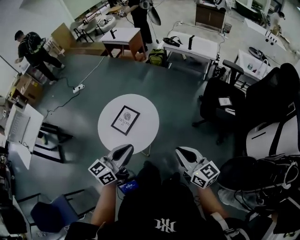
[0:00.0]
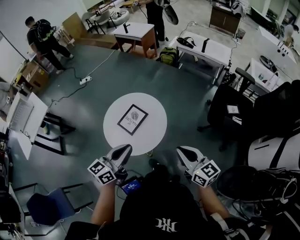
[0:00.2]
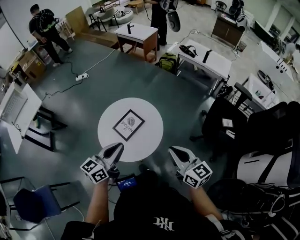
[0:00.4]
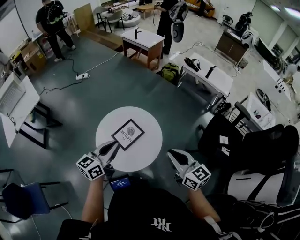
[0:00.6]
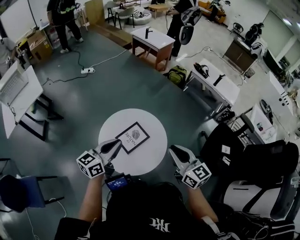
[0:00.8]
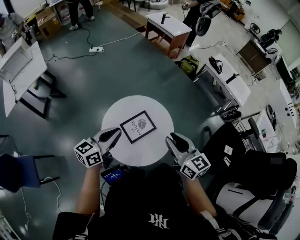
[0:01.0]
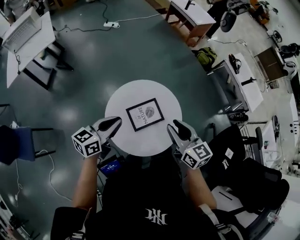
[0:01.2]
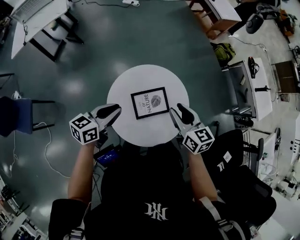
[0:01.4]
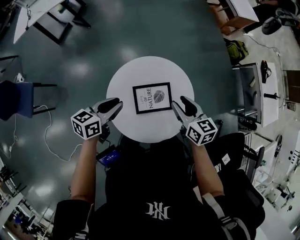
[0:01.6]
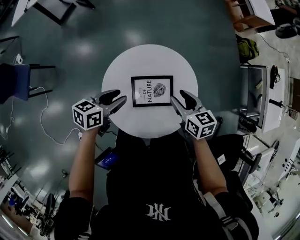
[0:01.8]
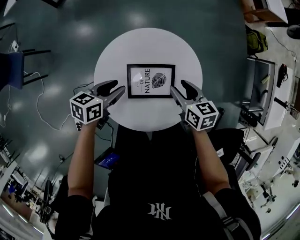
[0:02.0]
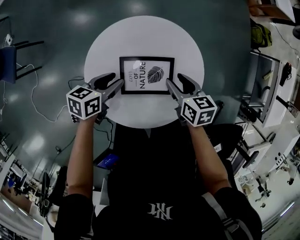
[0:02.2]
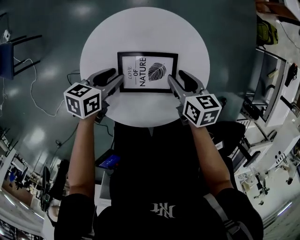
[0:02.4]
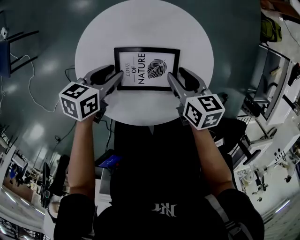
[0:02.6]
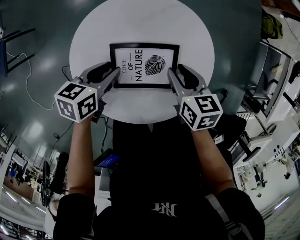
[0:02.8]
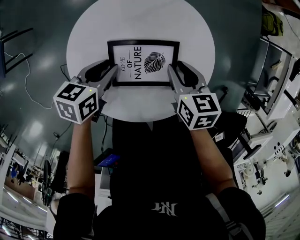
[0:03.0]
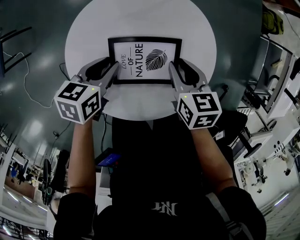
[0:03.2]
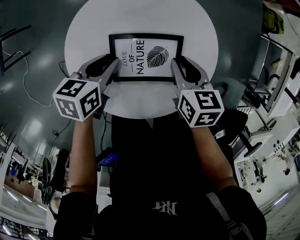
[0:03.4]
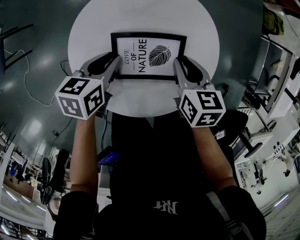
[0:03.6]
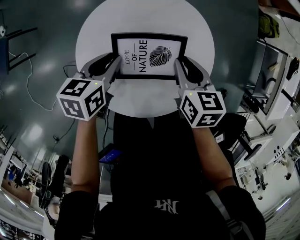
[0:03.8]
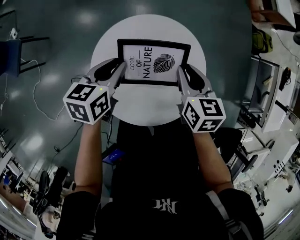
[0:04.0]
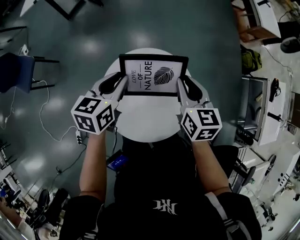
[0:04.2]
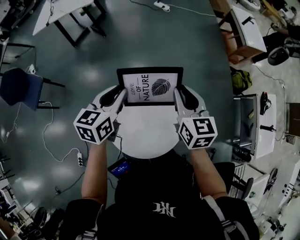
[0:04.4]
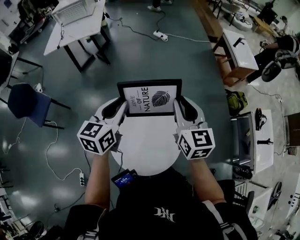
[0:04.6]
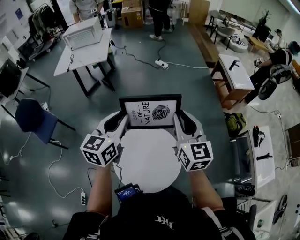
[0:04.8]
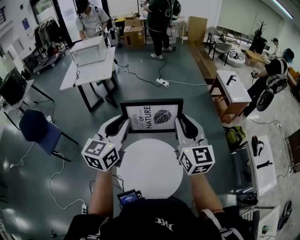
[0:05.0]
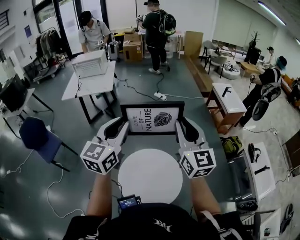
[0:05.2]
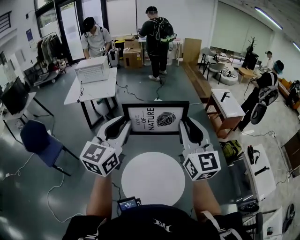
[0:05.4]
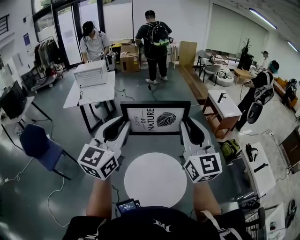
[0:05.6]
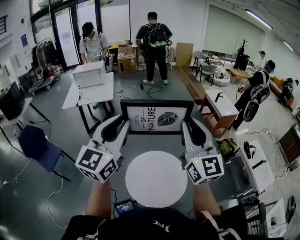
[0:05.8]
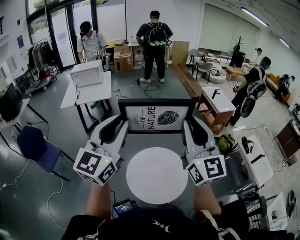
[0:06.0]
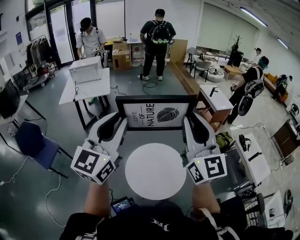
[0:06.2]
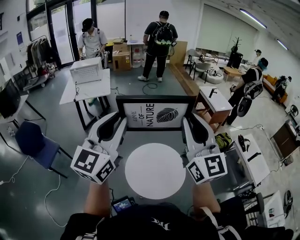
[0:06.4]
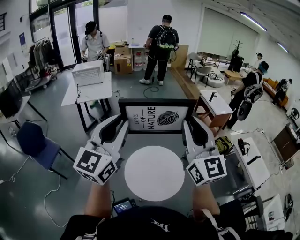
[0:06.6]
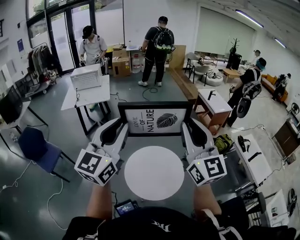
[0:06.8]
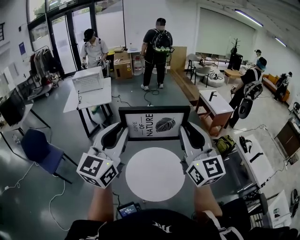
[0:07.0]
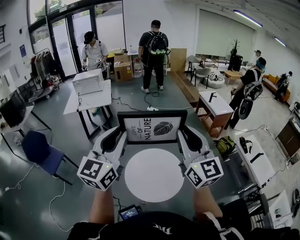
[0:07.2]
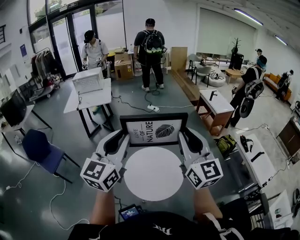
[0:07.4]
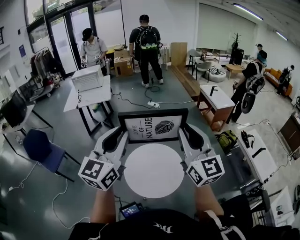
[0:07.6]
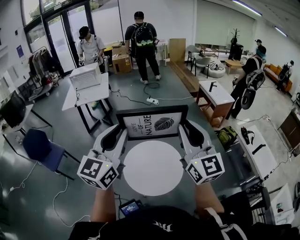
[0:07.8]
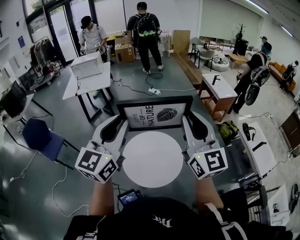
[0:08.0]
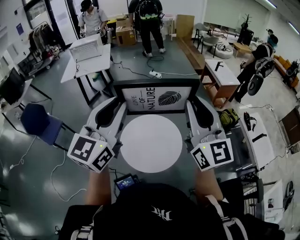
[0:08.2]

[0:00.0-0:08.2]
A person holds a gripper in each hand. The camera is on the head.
0:00.0 to 0:01.6: The left gripper moves roughly 40 cm, and turns by roughly 50 degrees. Meanwhile the right gripper ends up approximately 50 cm from where it was, swivels some 50 degrees, and opens up.
0:01.6 to 0:03.2: The grippers both shift downward by some 20 cm. The right gripper rotates approximately 20 degrees. Meanwhile the left gripper turns by about 30 degrees.
0:03.2 to 0:05.0: The two grippers go about 60 cm upward. The right gripper points its fingers roughly 50 degrees further upward; the left gripper tips its fingers upward by some 50 degrees.
0:05.0 to 0:06.6: The grippers both shift backward and upward by roughly 30 cm. The right gripper rotates about 20 degrees. The left gripper changes its angle by approximately 20 degrees.
0:06.6 to 0:08.2: Both grippers travel together to the right, approximately 5 cm.

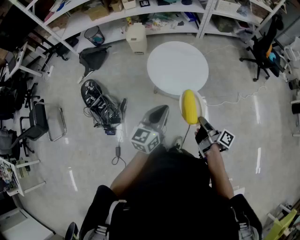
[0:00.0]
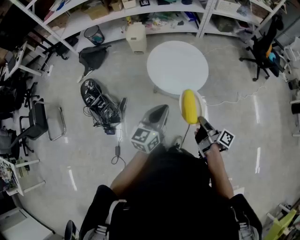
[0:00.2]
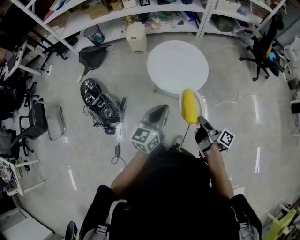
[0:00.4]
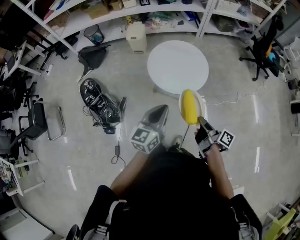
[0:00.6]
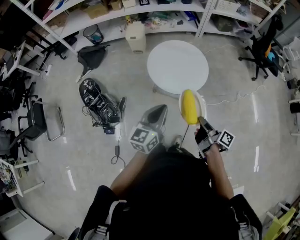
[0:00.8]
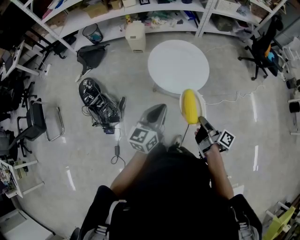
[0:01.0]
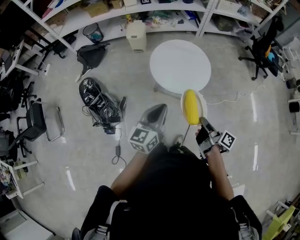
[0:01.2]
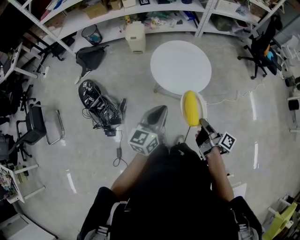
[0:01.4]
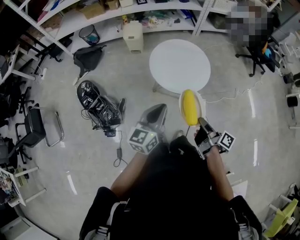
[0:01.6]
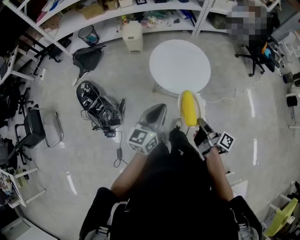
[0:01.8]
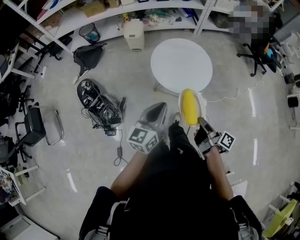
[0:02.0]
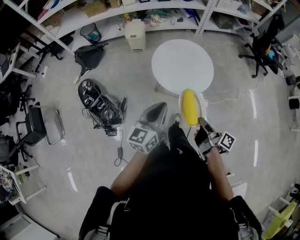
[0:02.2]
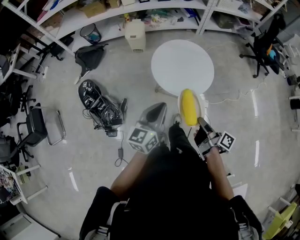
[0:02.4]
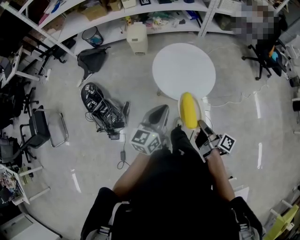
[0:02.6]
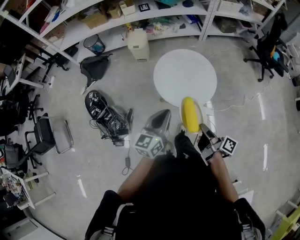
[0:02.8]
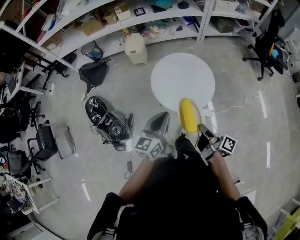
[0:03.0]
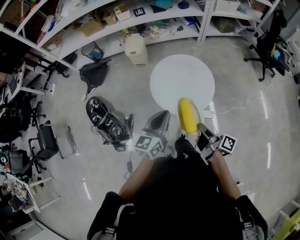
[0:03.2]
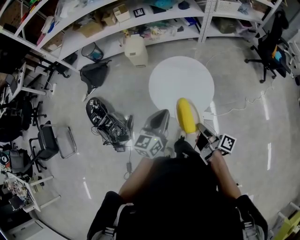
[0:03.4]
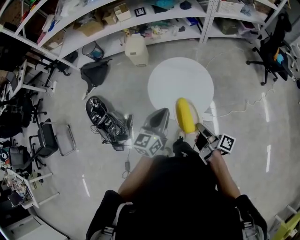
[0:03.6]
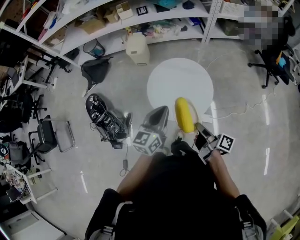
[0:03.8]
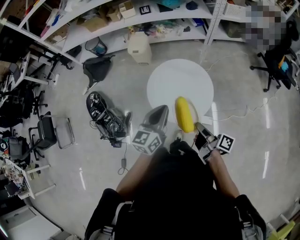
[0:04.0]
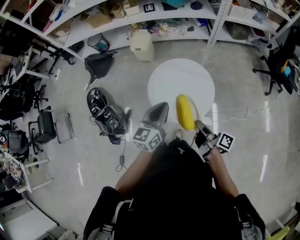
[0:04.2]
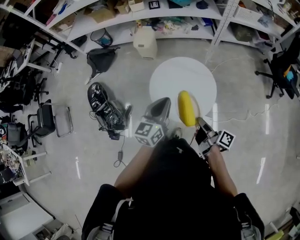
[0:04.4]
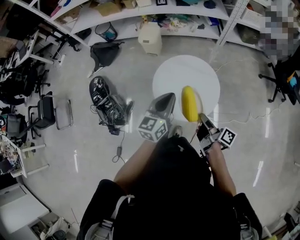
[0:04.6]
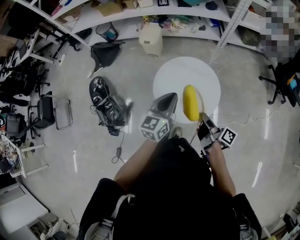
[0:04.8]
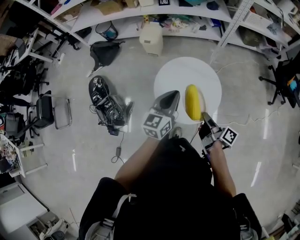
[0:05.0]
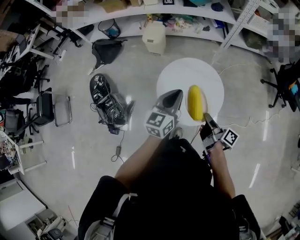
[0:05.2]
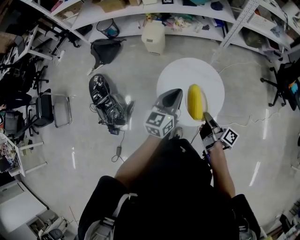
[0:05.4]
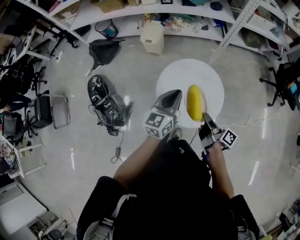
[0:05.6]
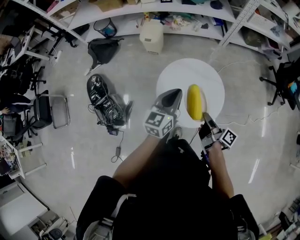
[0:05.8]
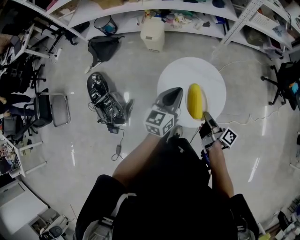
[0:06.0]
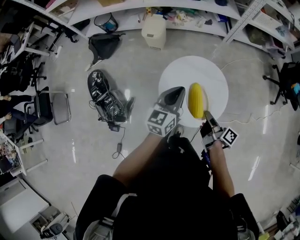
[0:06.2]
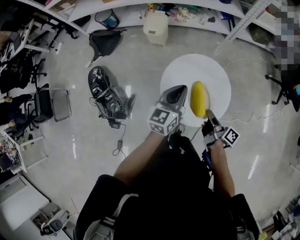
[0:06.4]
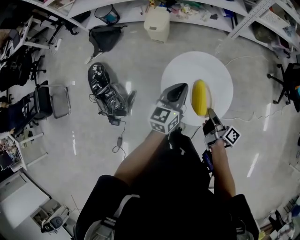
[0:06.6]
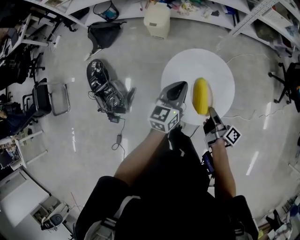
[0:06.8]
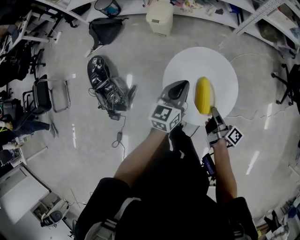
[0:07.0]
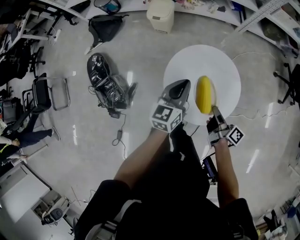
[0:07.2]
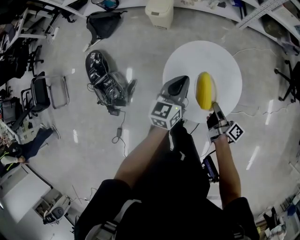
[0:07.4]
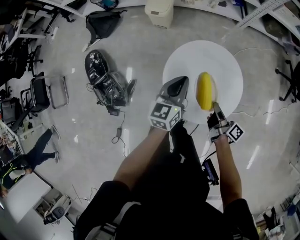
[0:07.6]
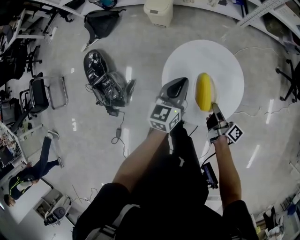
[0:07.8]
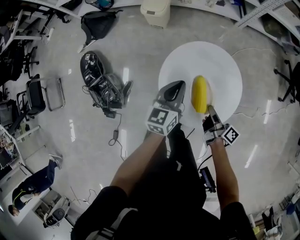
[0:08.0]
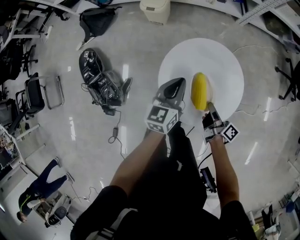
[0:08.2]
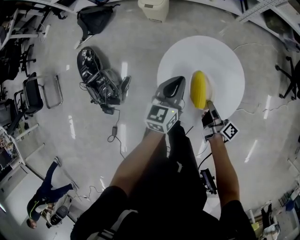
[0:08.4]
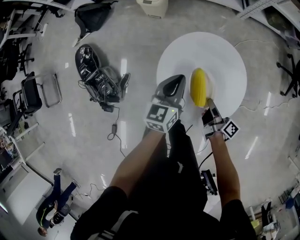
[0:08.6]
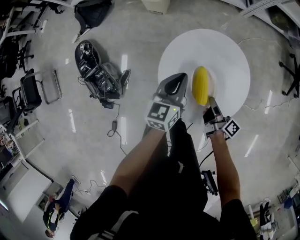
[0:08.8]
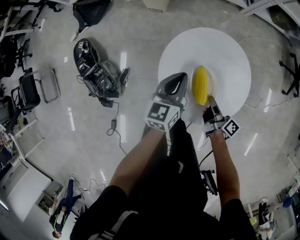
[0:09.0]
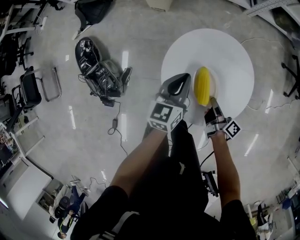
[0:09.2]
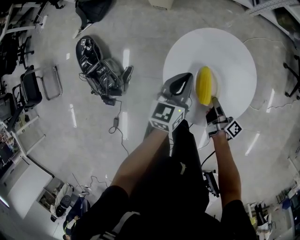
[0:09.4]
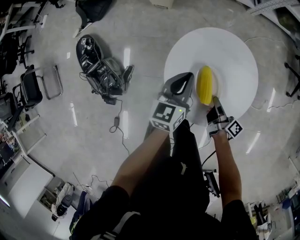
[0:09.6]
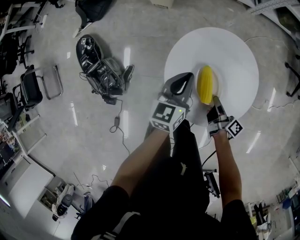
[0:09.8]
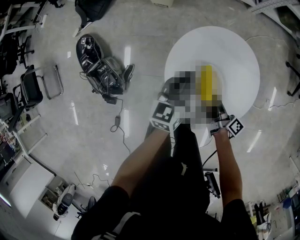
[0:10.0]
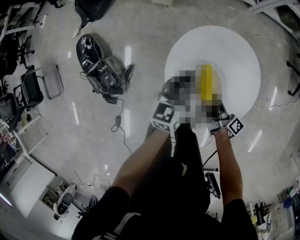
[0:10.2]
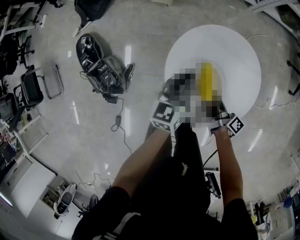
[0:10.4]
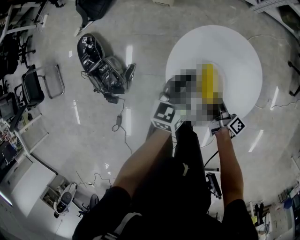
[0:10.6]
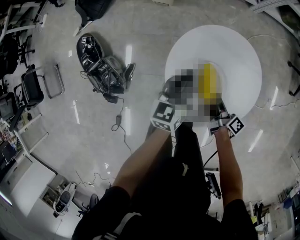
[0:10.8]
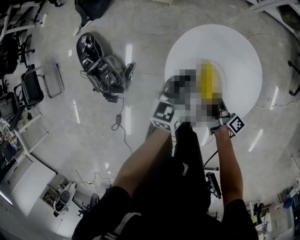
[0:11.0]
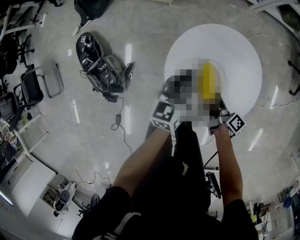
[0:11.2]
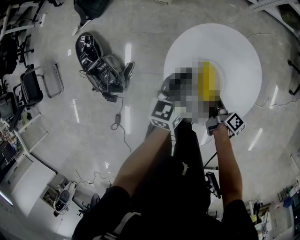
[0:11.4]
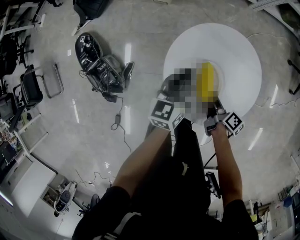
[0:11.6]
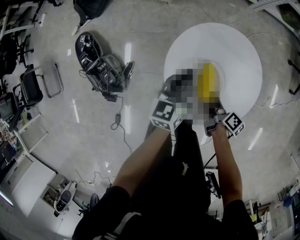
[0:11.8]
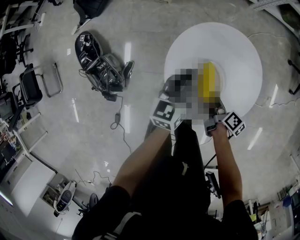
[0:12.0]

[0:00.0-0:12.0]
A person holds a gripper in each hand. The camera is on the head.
0:00.0 to 0:01.6: The left gripper changes place by some 5 cm.
0:01.6 to 0:03.0: The left gripper moves about 10 cm.
0:03.0 to 0:04.4: The left gripper moves some 15 cm.
0:04.4 to 0:06.0: The left gripper ends up roughly 10 cm from where it was.
0:06.0 to 0:07.6: The left gripper shifts about 10 cm downward.
0:07.6 to 0:09.0: The left gripper shifts about 10 cm downward.

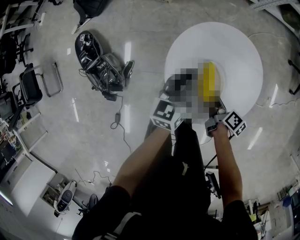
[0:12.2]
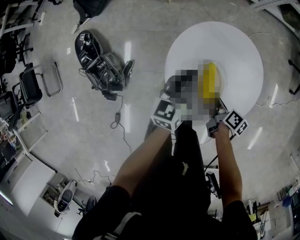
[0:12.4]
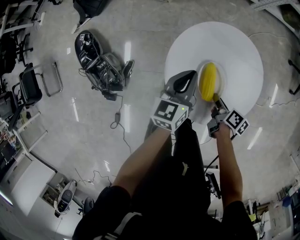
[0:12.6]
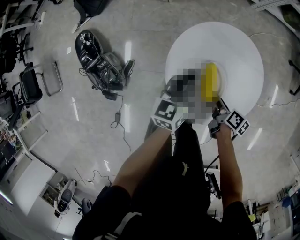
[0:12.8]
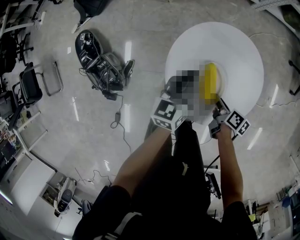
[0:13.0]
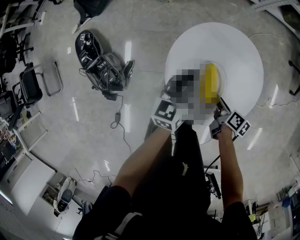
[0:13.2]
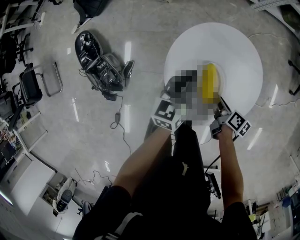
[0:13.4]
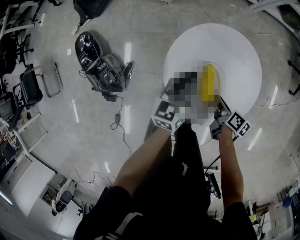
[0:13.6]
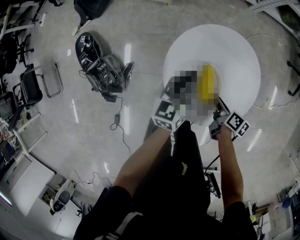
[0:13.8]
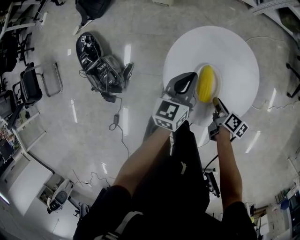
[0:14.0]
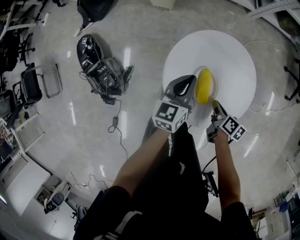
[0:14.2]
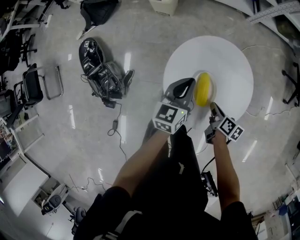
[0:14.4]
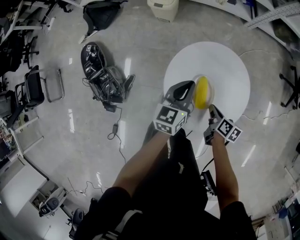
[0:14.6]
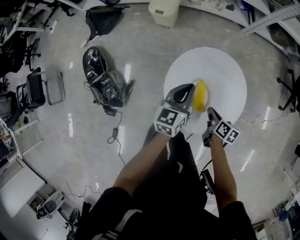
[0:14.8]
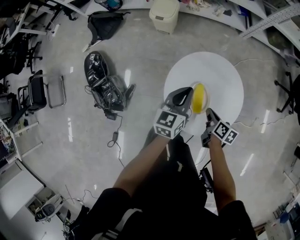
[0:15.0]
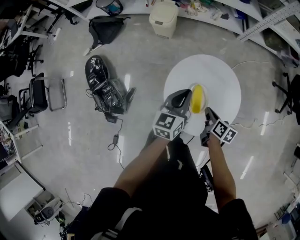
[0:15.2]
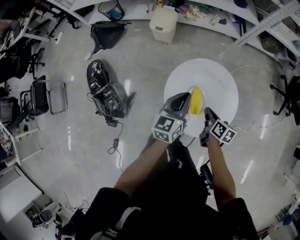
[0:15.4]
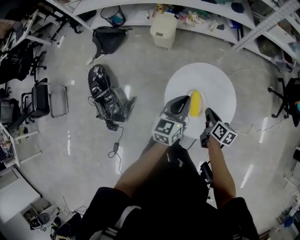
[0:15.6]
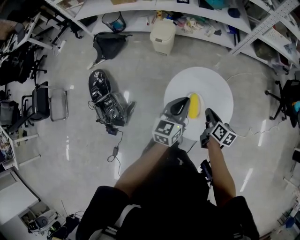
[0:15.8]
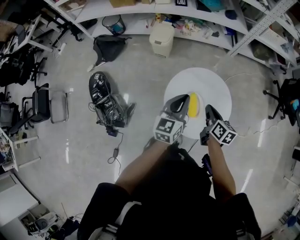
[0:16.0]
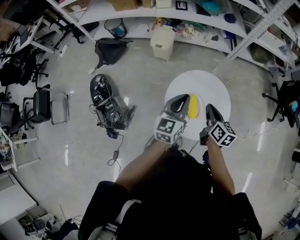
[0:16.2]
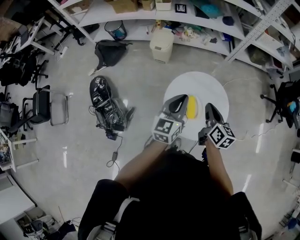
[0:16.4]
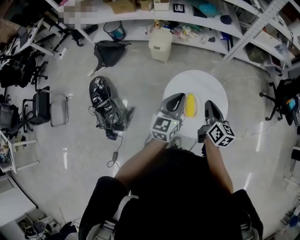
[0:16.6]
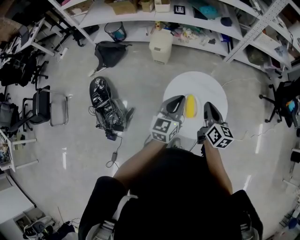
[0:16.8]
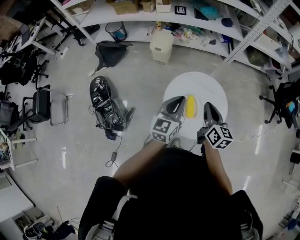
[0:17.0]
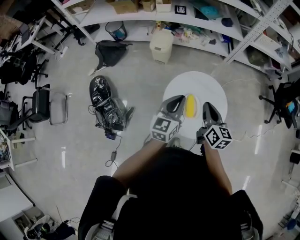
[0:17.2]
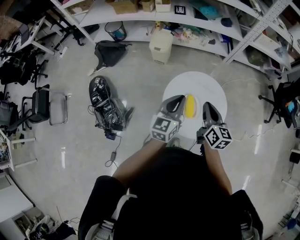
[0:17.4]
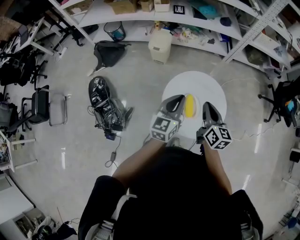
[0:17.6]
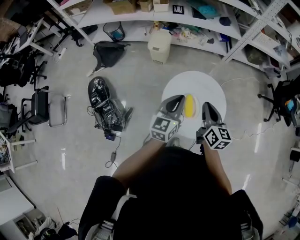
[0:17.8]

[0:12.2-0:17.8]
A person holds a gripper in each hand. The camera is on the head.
0:13.6 to 0:15.0: The left gripper is displaced upward by about 10 cm.
0:15.0 to 0:16.4: The left gripper is displaced upward by approximately 15 cm.
